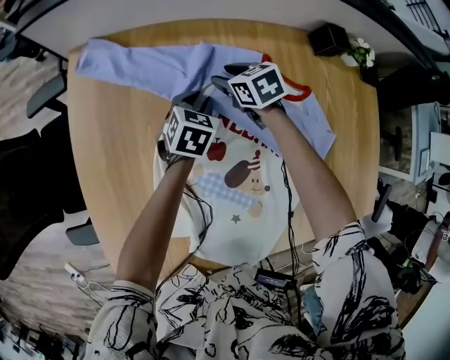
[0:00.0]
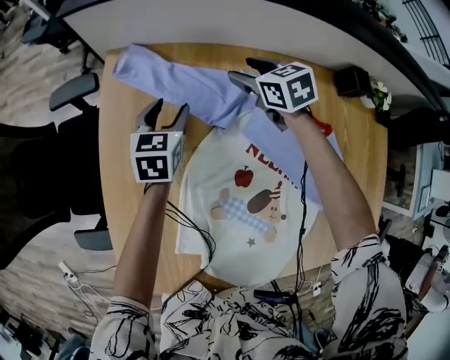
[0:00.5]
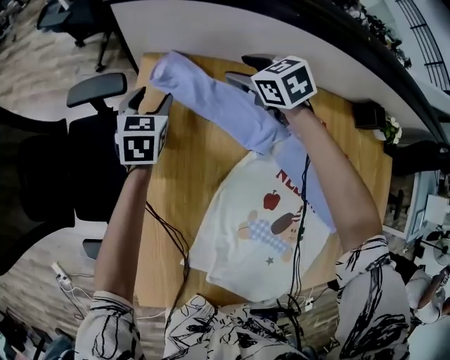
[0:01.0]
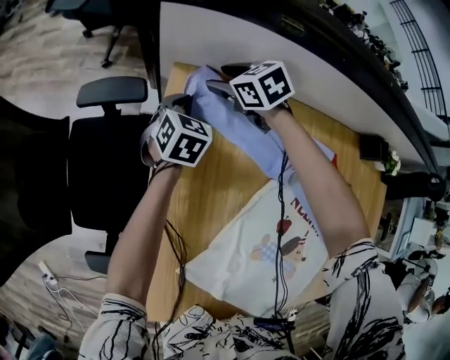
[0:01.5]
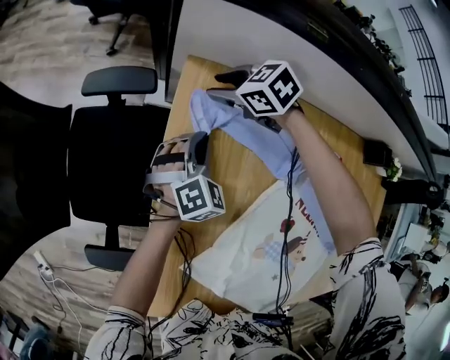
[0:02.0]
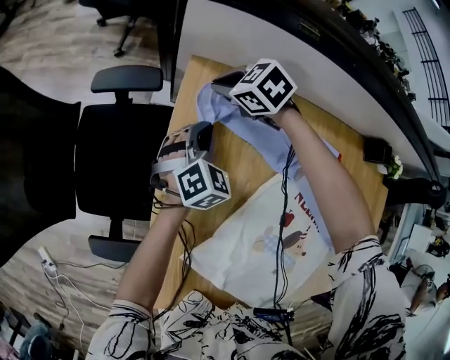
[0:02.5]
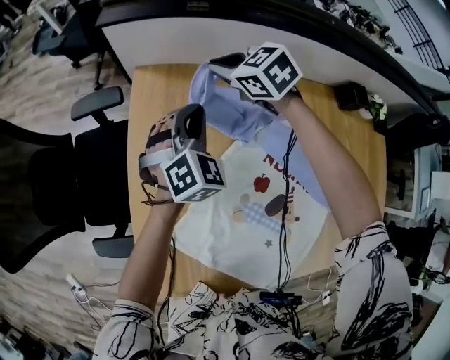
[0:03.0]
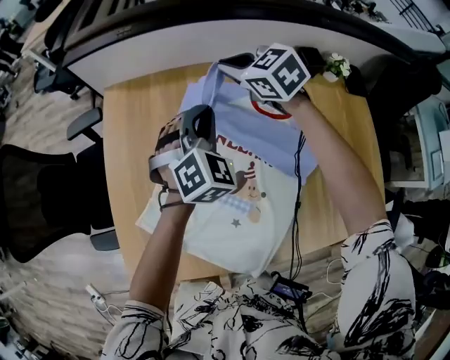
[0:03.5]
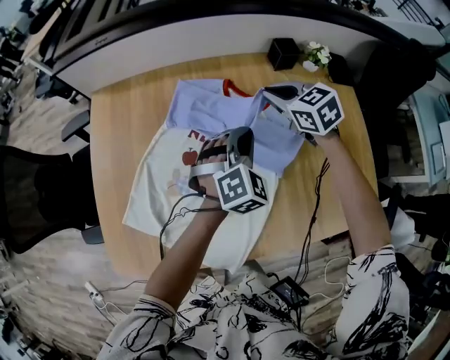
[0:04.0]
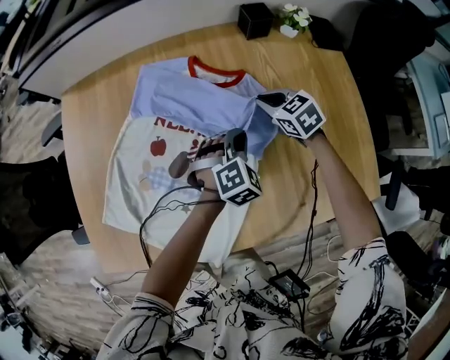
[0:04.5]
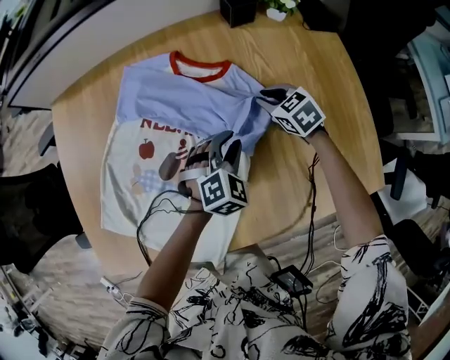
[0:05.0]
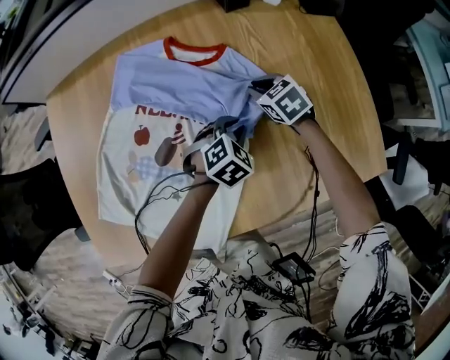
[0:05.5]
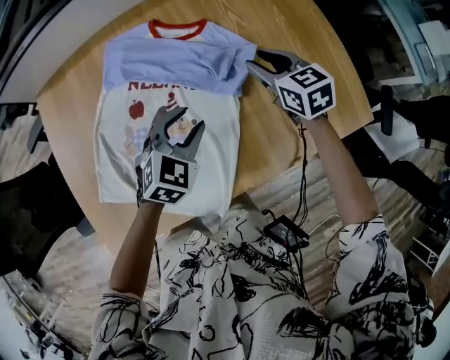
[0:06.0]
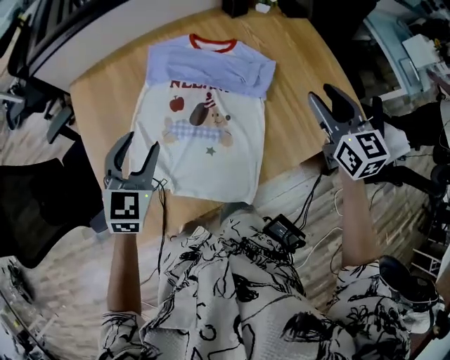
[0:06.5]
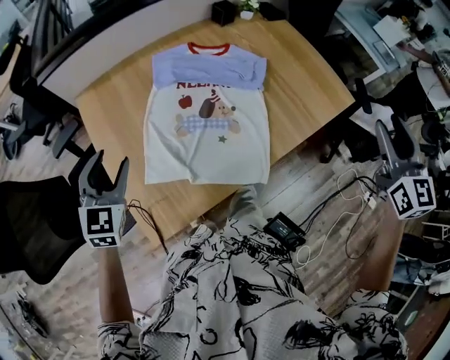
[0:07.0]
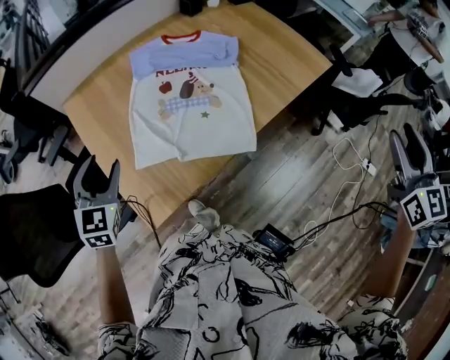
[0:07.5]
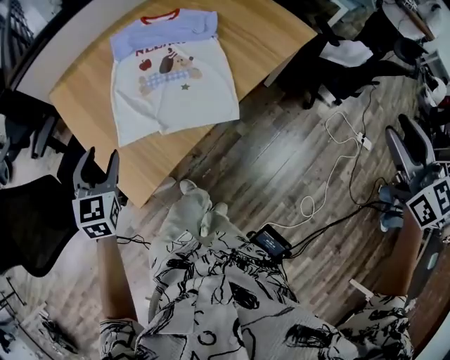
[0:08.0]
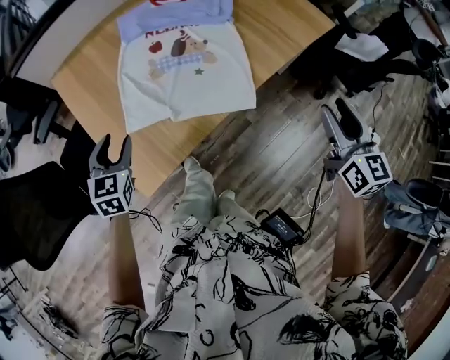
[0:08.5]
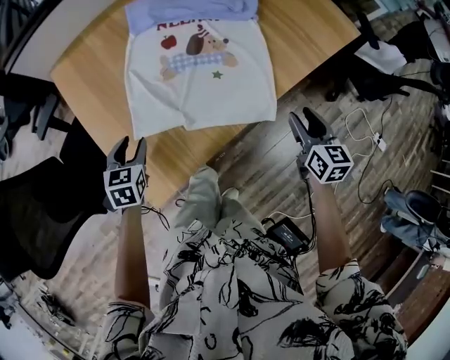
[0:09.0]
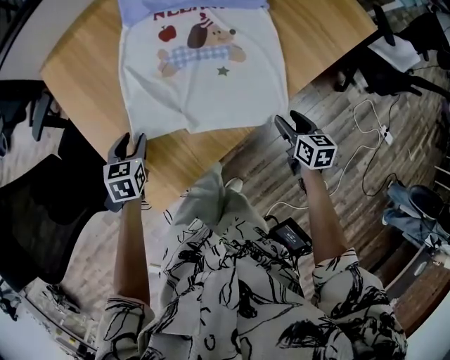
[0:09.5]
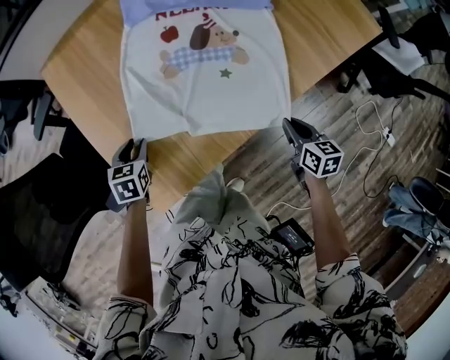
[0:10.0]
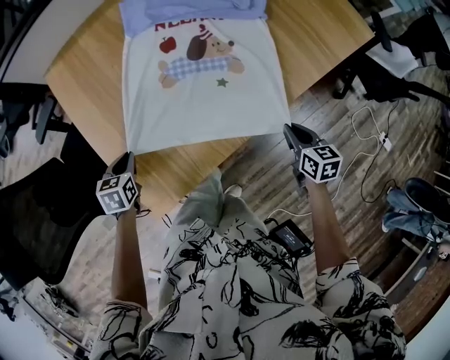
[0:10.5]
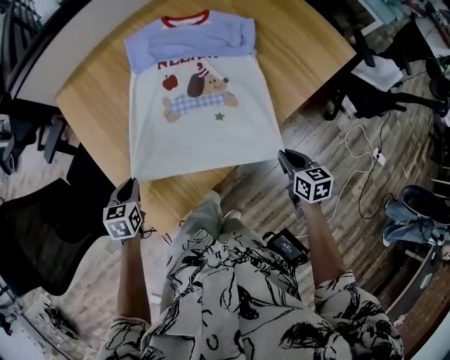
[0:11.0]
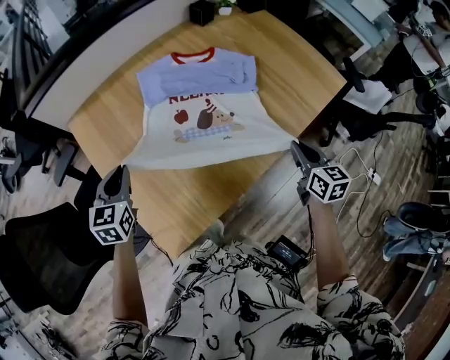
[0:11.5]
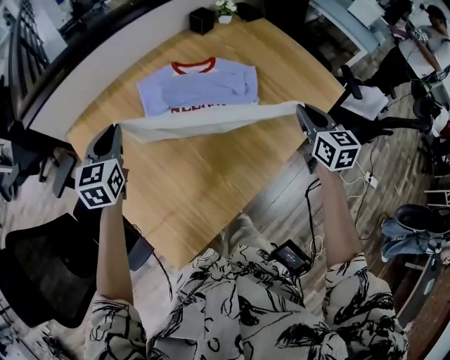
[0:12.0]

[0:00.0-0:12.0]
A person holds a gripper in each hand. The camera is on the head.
0:00.0 to 0:02.0: The right gripper moves some 10 cm upward and comes back, and turns by about 40 degrees. Meanwhile the left gripper changes place by some 30 cm, and turns by some 30 degrees.
0:02.0 to 0:04.0: Both grippers are carried roughly 60 cm. The left gripper changes its angle by approximately 20 degrees; the right gripper turns by about 40 degrees, and closes up.
0:04.0 to 0:06.0: The right gripper is displaced backward and to the right by some 20 cm, travels downward and back again, some 20 cm each way, swivels approximately 20 degrees, and opens; the left gripper goes about 15 cm backward and downward, changes its angle by some 30 degrees, and opens up.
0:06.0 to 0:08.0: The left gripper shifts some 50 cm backward and to the left; the right gripper is displaced backward and upward by roughly 70 cm, and changes its angle by roughly 40 degrees.
0:08.0 to 0:10.0: The left gripper moves downward, roughly 25 cm, and changes its angle by roughly 30 degrees; the right gripper shifts roughly 50 cm downward, rotates some 40 degrees, and closes up.
0:10.0 to 0:12.0: The two grippers go some 35 cm upward and forward. The left gripper tilts its fingers roughly 30 degrees upward, while the right gripper swivels about 30 degrees.

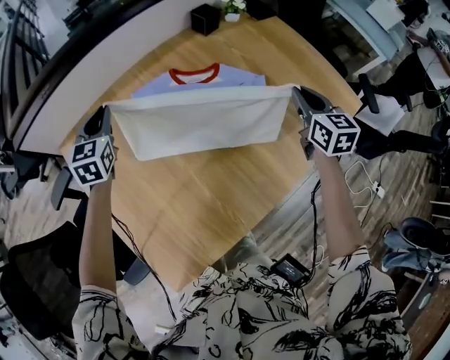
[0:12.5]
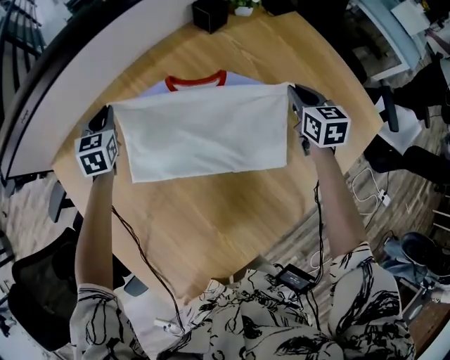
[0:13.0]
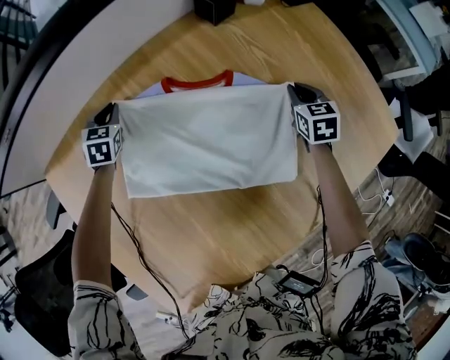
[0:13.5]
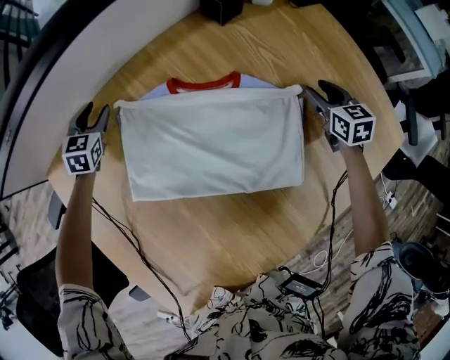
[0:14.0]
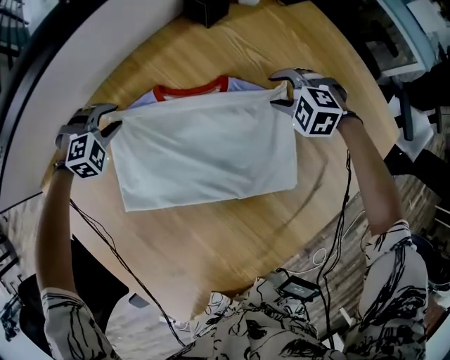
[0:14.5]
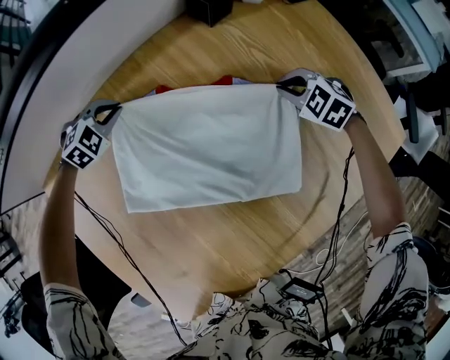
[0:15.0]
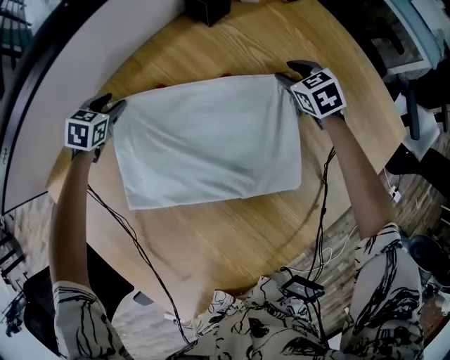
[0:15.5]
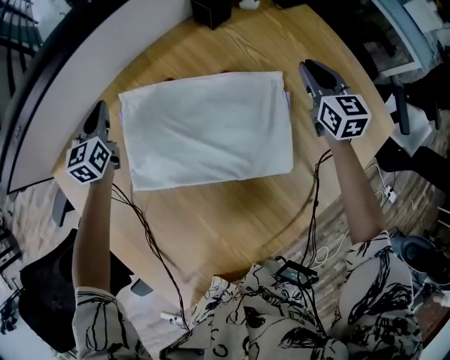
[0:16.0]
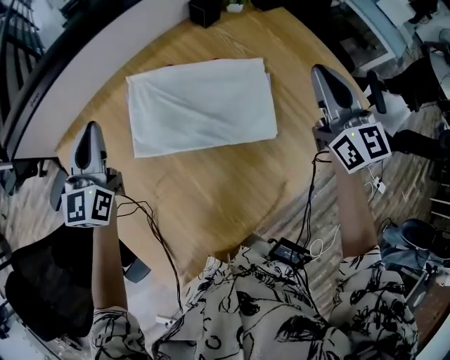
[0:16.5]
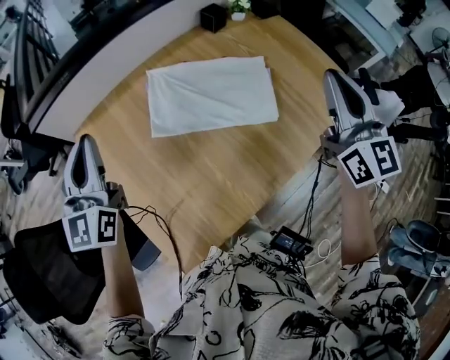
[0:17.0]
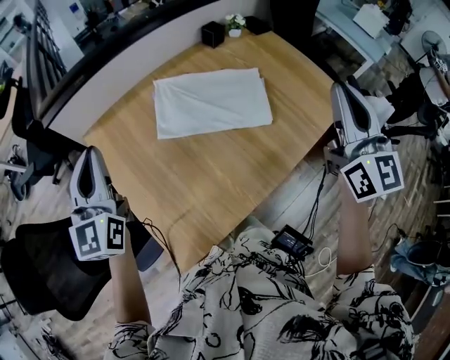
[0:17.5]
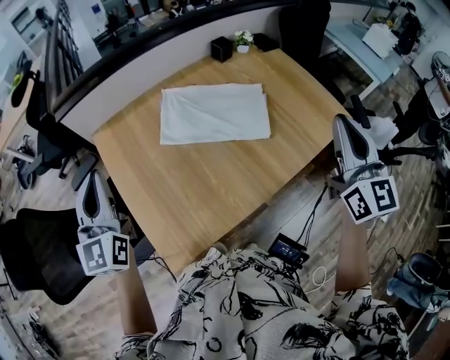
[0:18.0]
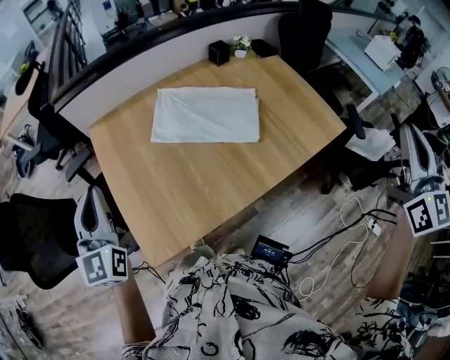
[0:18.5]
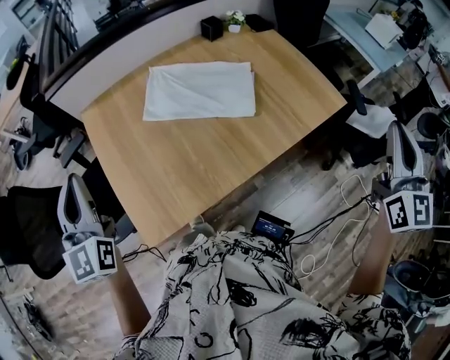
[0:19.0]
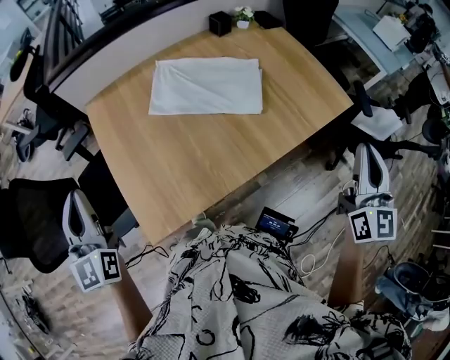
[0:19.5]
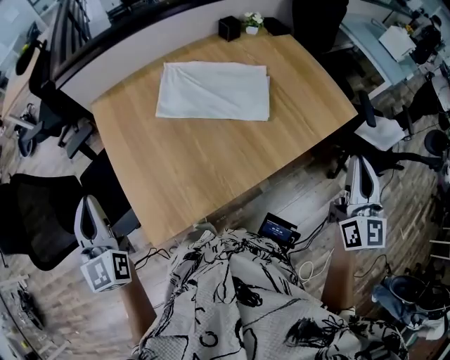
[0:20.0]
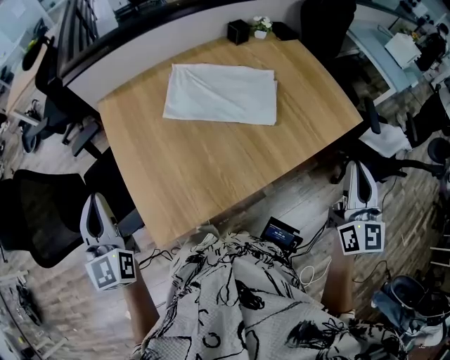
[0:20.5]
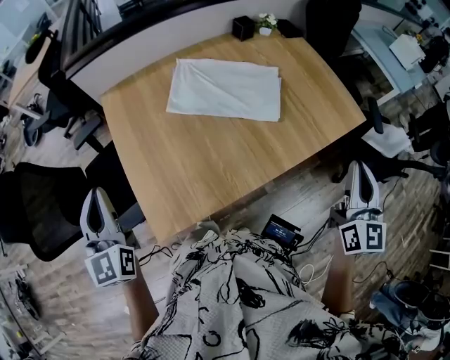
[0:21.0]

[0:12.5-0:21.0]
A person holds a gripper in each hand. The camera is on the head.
0:12.5 to 0:14.5: Both grippers move downward and forward, some 30 cm. The left gripper twists roughly 70 degrees clockwise, seen from behind, and opens its fingers. Meanwhile the right gripper rolls counterclockwise, seen from behind, by some 70 degrees, and opens.
0:14.5 to 0:16.5: Both grippers travel together upward and backward, some 40 cm. The right gripper tips its fingers upward by some 60 degrees, and closes its fingers; the left gripper angles its fingers upward, by approximately 60 degrees, and closes up.
0:16.5 to 0:19.0: The left gripper shifts some 40 cm backward and upward, and rotates about 30 degrees, while the right gripper heads backward, upward and to the right, covering roughly 40 cm, and swivels roughly 20 degrees.
0:19.0 to 0:21.0: The left gripper shifts approximately 5 cm downward, while the right gripper shifts some 15 cm downward and to the left.

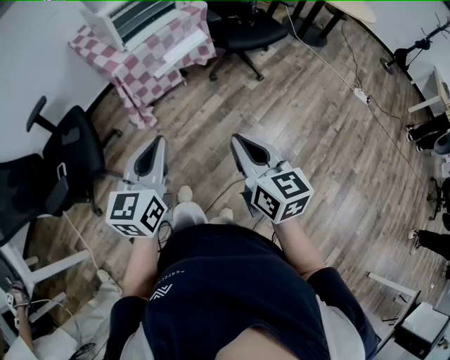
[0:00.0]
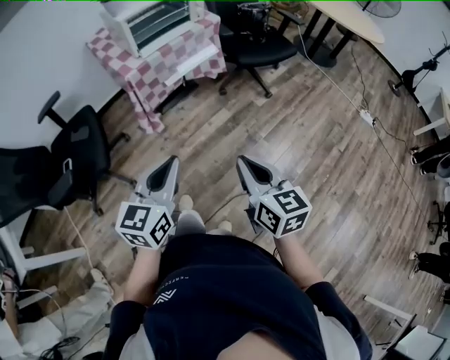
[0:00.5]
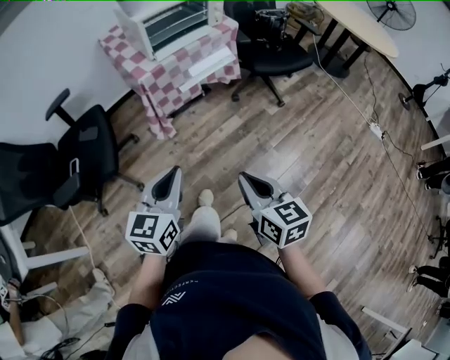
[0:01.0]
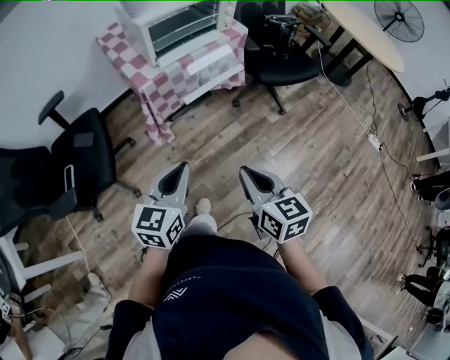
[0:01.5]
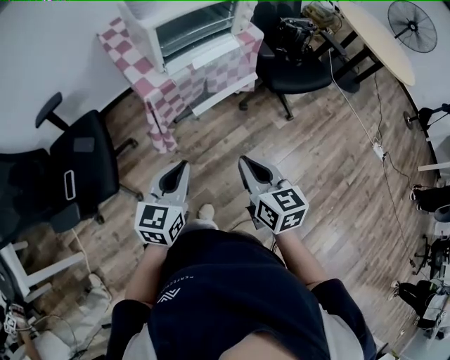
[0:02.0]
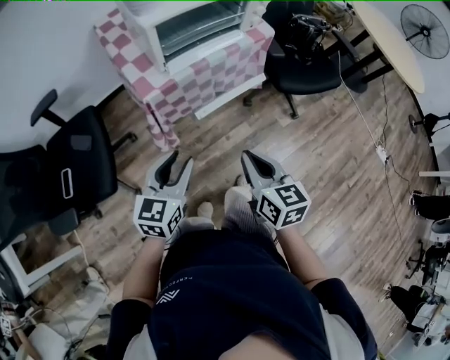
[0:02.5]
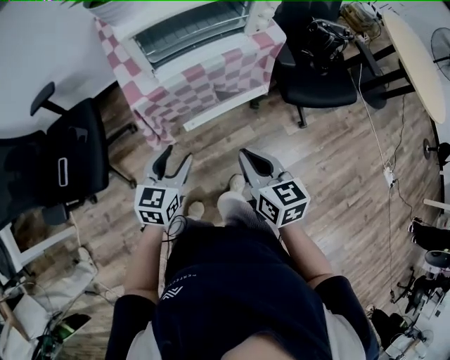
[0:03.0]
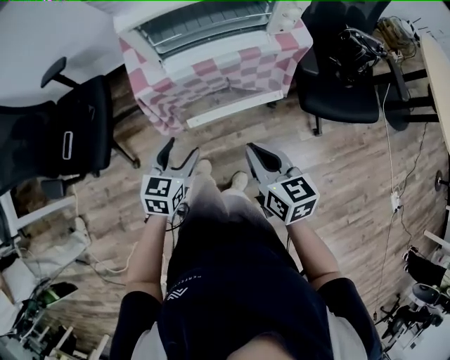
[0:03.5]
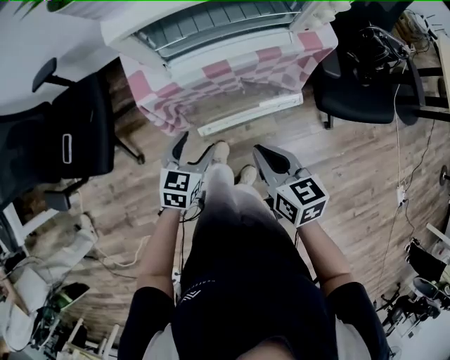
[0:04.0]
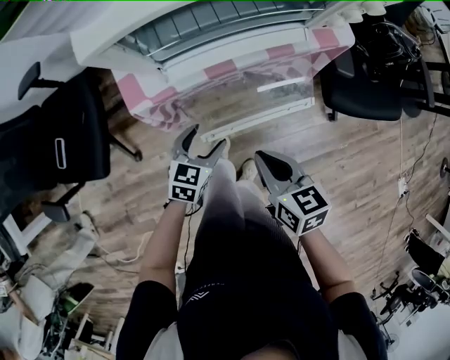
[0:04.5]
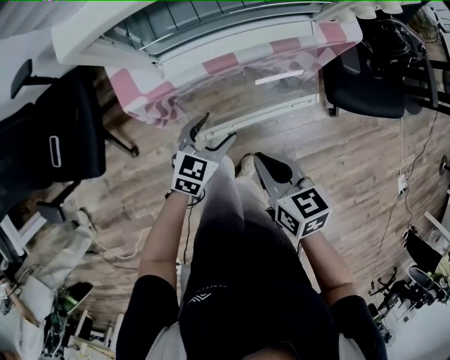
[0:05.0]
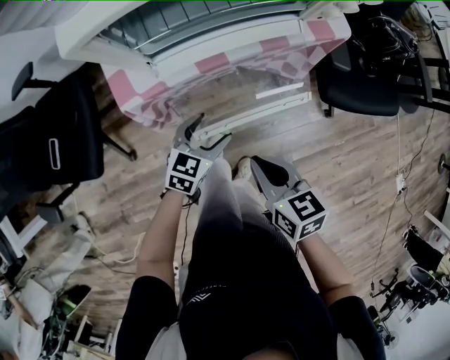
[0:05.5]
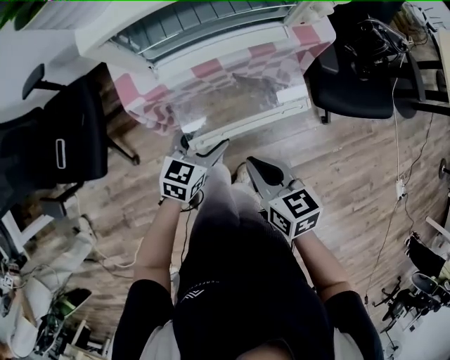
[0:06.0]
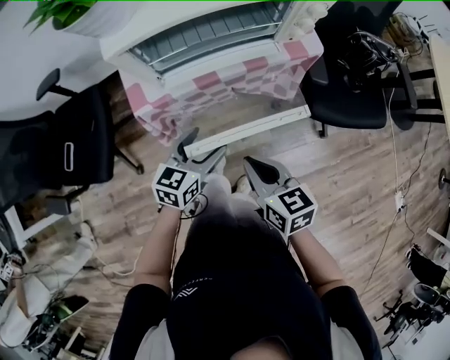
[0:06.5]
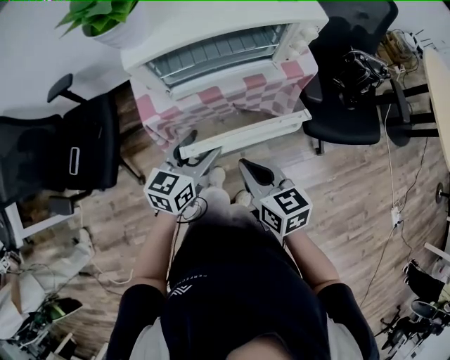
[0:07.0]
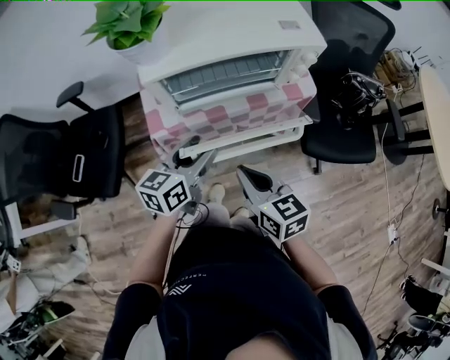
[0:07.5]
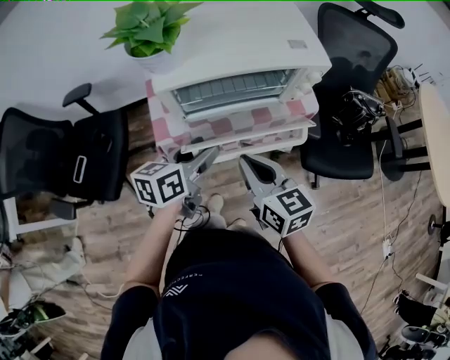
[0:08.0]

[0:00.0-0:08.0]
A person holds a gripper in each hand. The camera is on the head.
0:00.0 to 0:02.0: The right gripper moves forward, some 20 cm. Meanwhile the left gripper heads forward and downward, covering some 20 cm.
0:02.0 to 0:04.0: Both grippers move forward and downward, roughly 25 cm. The left gripper rotates some 30 degrees, and opens up. Meanwhile the right gripper rotates roughly 30 degrees.
0:04.0 to 0:06.0: The left gripper is displaced to the right by about 5 cm.
0:06.0 to 0:08.0: The left gripper moves upward, approximately 20 cm, rotates approximately 30 degrees, and closes. The right gripper travels upward and forward by about 15 cm, and turns by approximately 20 degrees.
